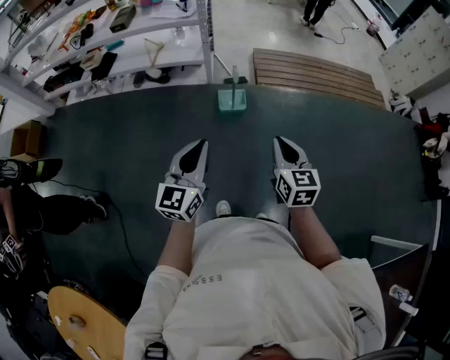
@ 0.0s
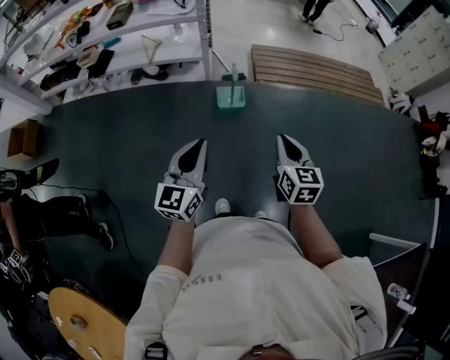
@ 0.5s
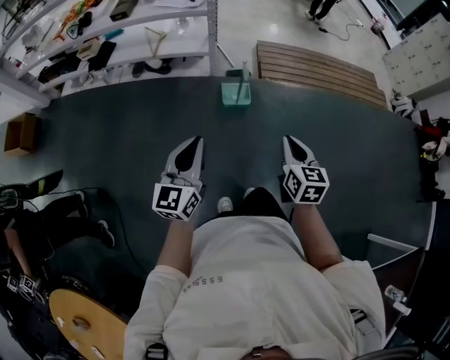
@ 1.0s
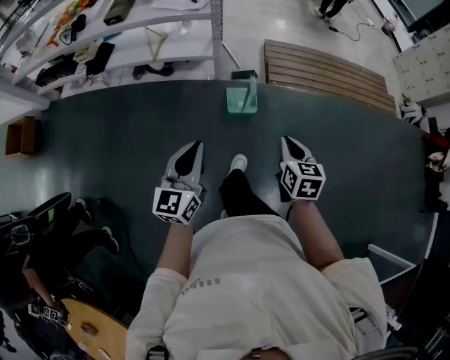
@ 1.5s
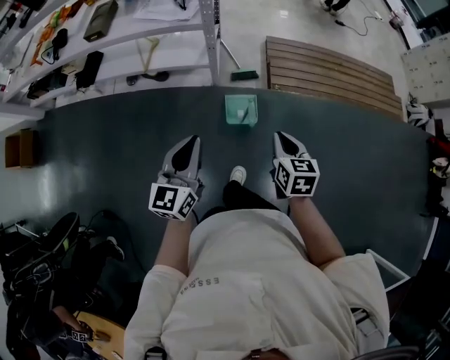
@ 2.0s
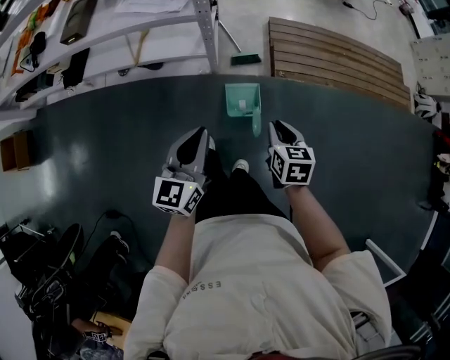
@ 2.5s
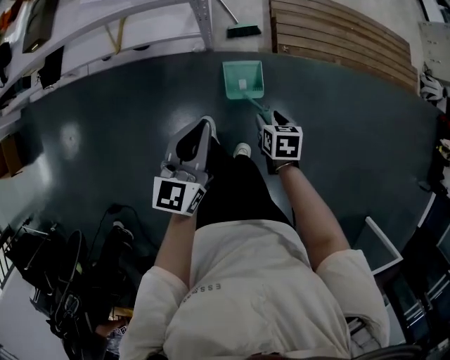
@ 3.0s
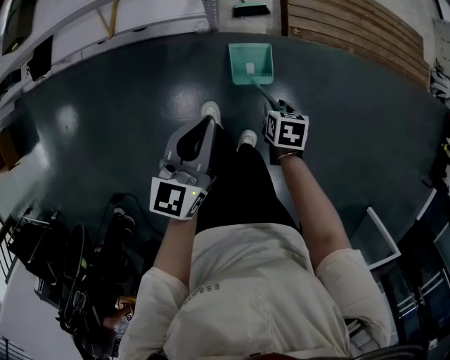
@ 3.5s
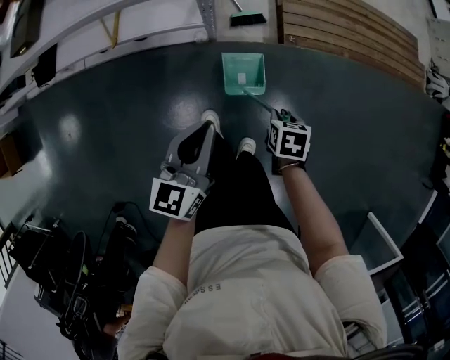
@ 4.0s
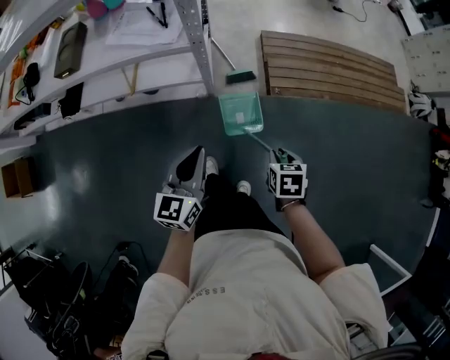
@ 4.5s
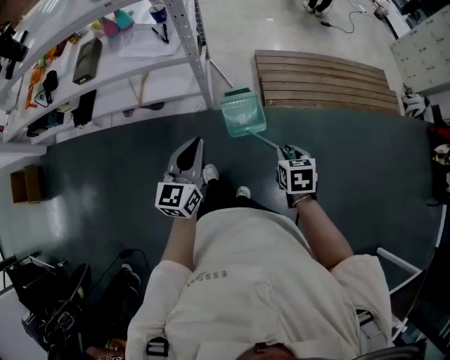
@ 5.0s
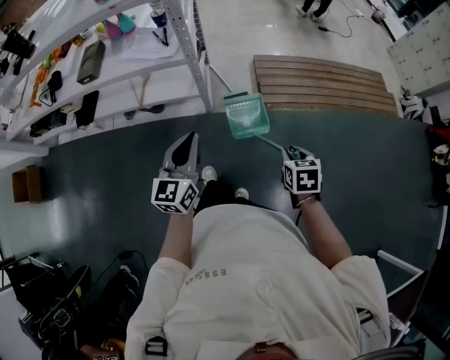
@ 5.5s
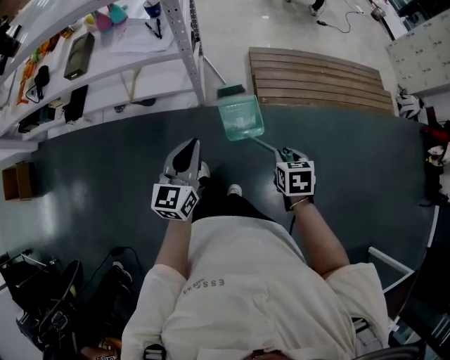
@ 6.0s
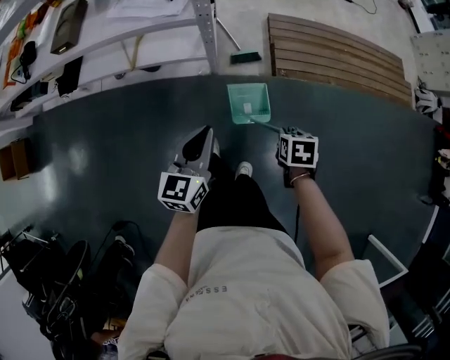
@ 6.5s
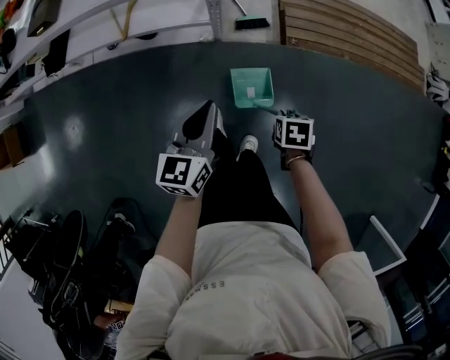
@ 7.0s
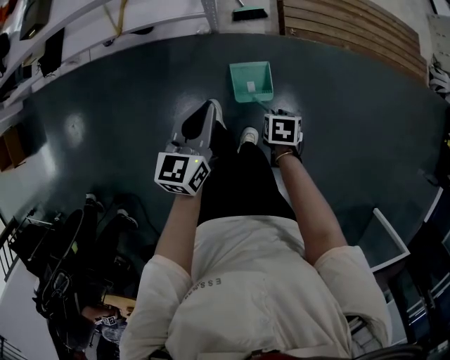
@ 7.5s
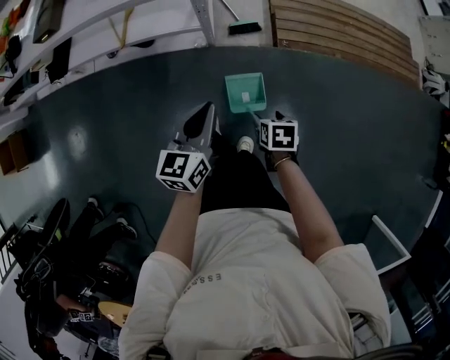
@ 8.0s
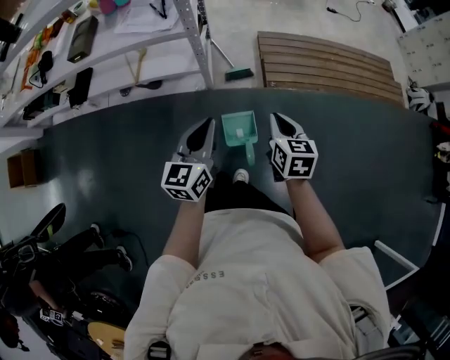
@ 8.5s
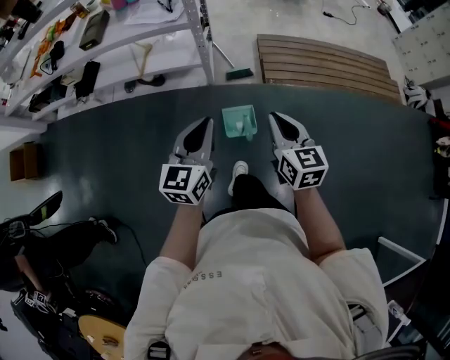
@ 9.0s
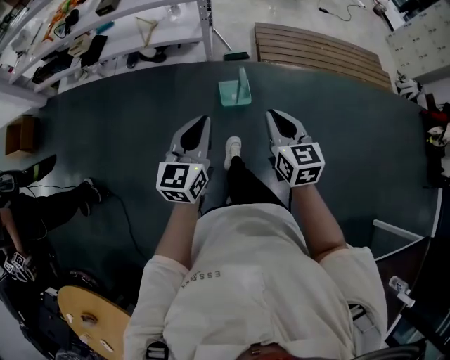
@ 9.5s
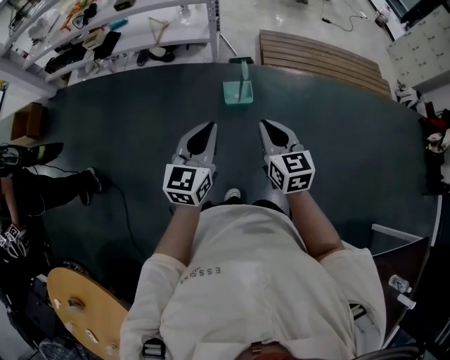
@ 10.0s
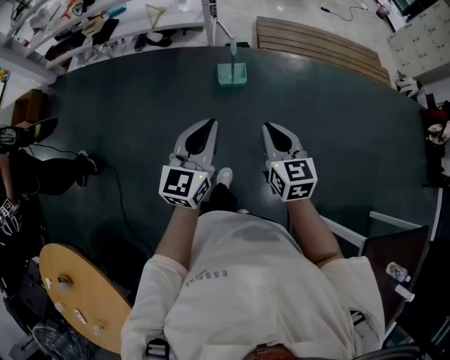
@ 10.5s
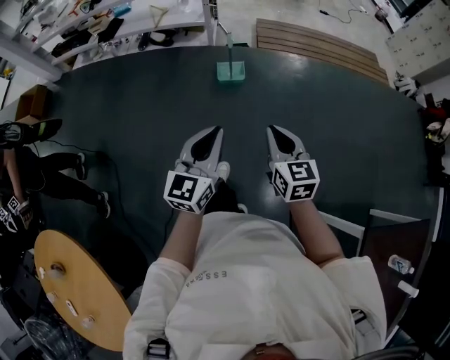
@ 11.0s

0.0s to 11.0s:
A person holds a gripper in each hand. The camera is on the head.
0.0s to 2.0s: Both grippers move forward, some 35 cm.
2.0s to 3.5s: The right gripper is displaced downward and forward by approximately 30 cm, points its fingers about 30 degrees further downward, and opens up. Meanwhile the left gripper is displaced forward and downward by some 25 cm.
3.5s to 5.5s: The left gripper moves upward and backward, some 20 cm. Meanwhile the right gripper heads upward and to the right, covering some 30 cm, and swivels some 20 degrees.
5.5s to 7.5s: The two grippers go about 25 cm downward. The right gripper swivels about 30 degrees. Meanwhile the left gripper swivels roughly 20 degrees.
7.5s to 9.0s: The left gripper travels upward by about 20 cm. The right gripper goes about 35 cm upward, tips its fingers upward by approximately 60 degrees, and opens, then closes once more.
9.0s to 11.0s: The two grippers travel together, backward, approximately 60 cm.

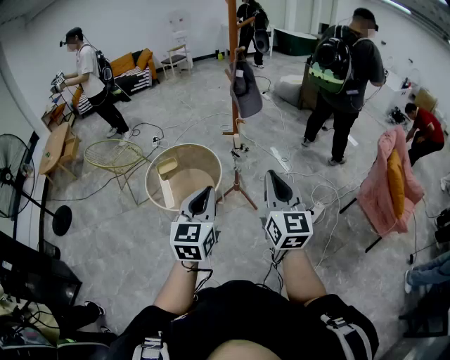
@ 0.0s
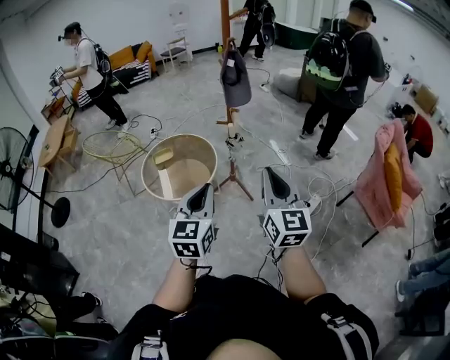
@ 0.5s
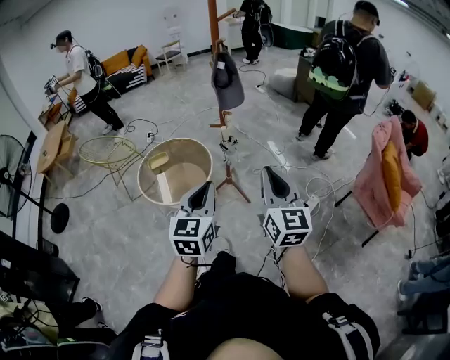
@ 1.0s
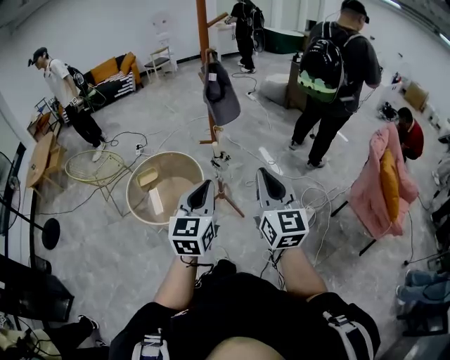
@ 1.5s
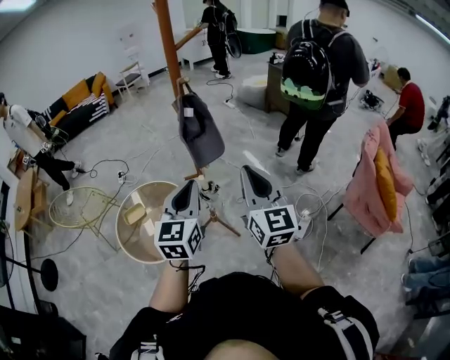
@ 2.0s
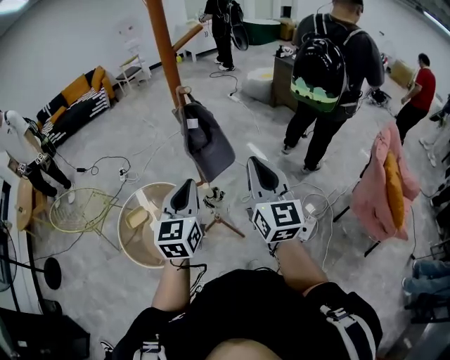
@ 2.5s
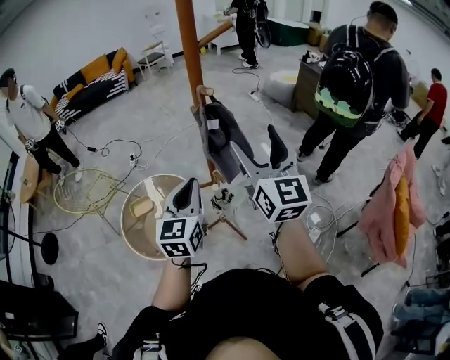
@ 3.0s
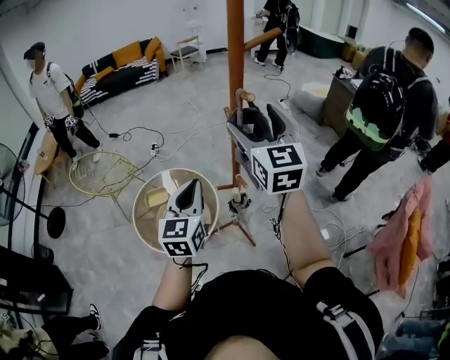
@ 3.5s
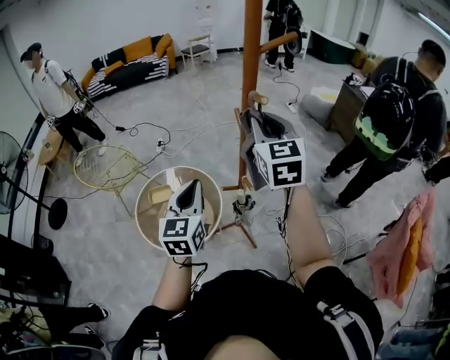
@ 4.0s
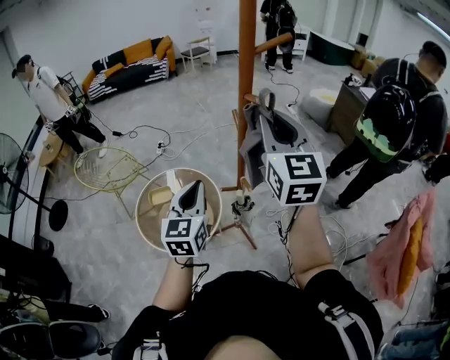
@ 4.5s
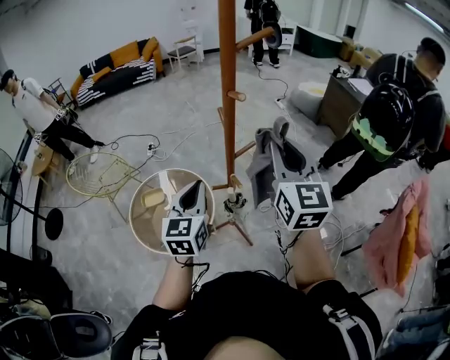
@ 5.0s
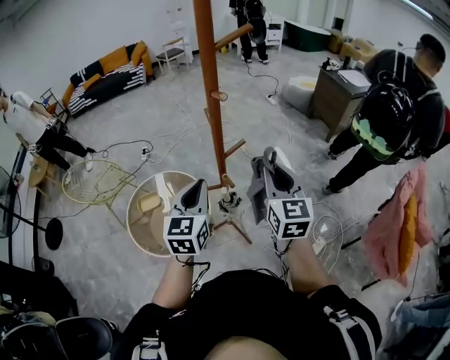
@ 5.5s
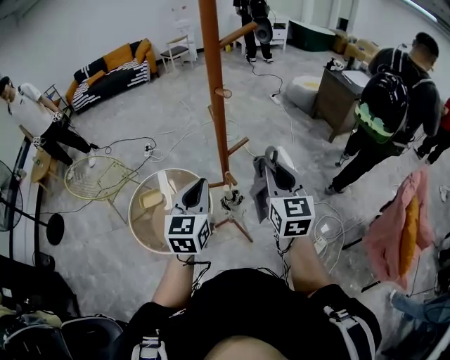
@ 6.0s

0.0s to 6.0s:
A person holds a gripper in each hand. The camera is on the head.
0.0s to 2.0s: The two grippers go some 30 cm forward.
2.0s to 4.0s: The left gripper travels forward and to the left by approximately 20 cm, and rotates approximately 20 degrees. The right gripper travels forward by roughly 30 cm, turns by approximately 20 degrees, and opens, then closes once more.
4.0s to 6.0s: The right gripper is displaced downward, to the right and backward by roughly 20 cm. The left gripper shifts approximately 10 cm to the right.

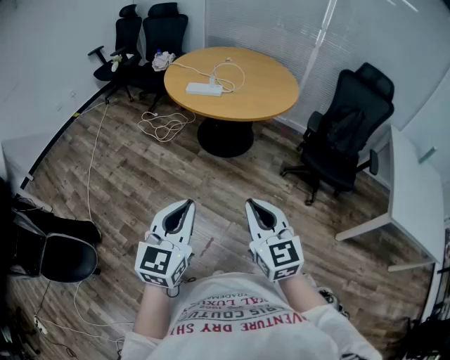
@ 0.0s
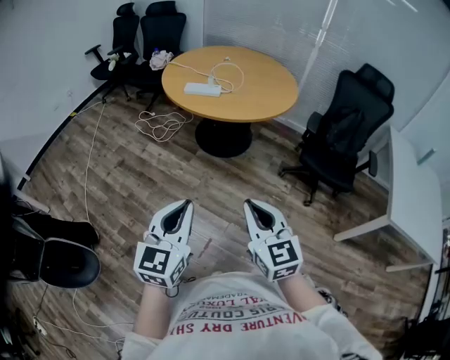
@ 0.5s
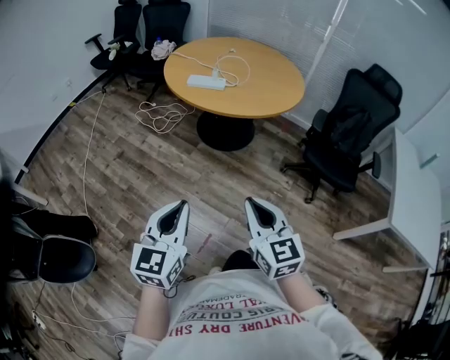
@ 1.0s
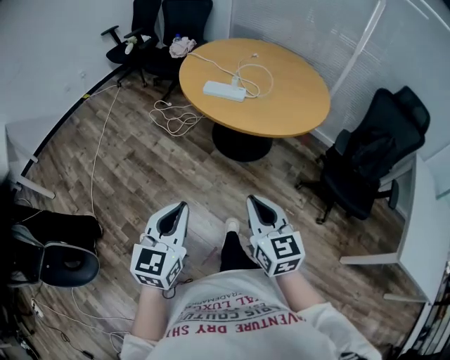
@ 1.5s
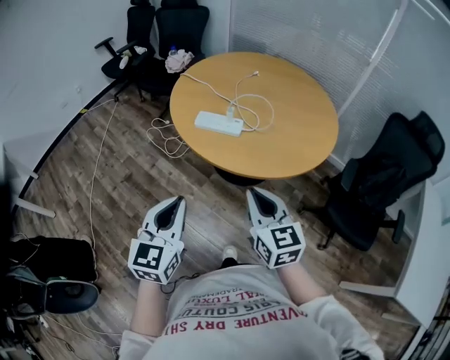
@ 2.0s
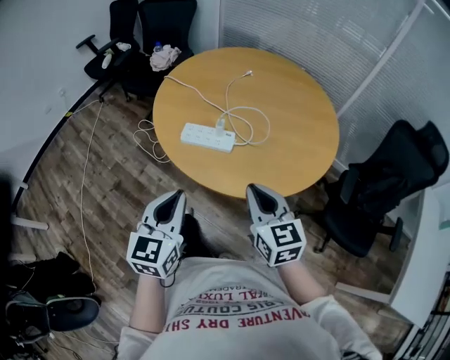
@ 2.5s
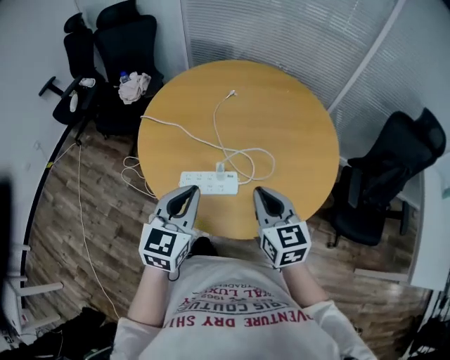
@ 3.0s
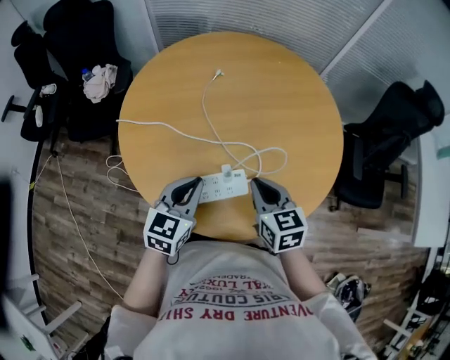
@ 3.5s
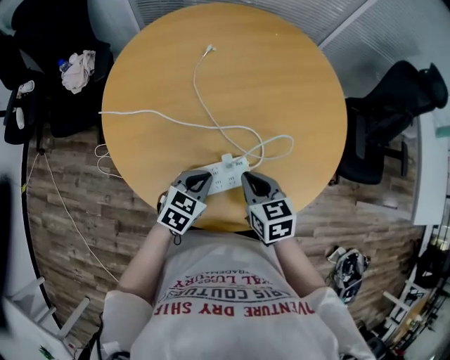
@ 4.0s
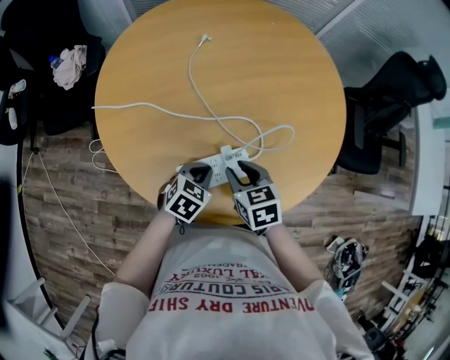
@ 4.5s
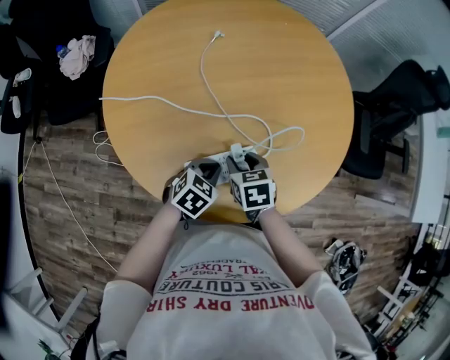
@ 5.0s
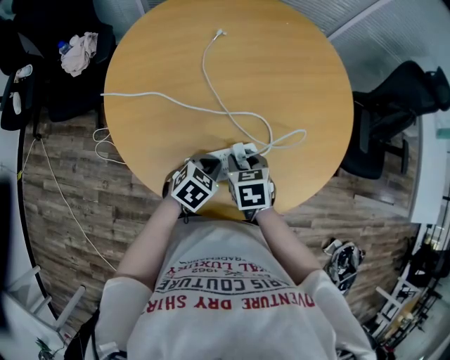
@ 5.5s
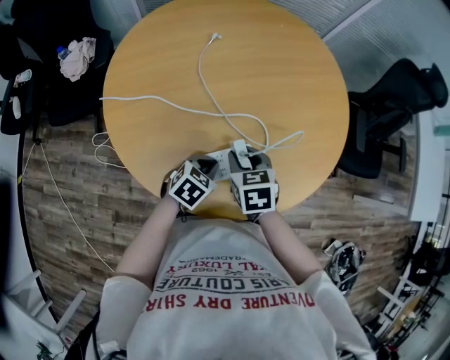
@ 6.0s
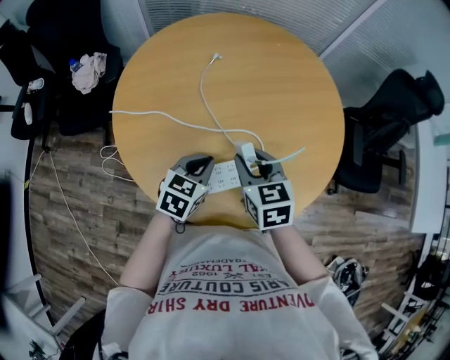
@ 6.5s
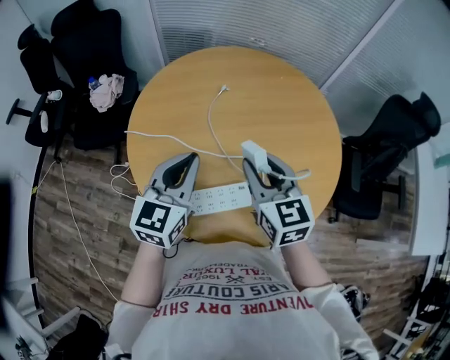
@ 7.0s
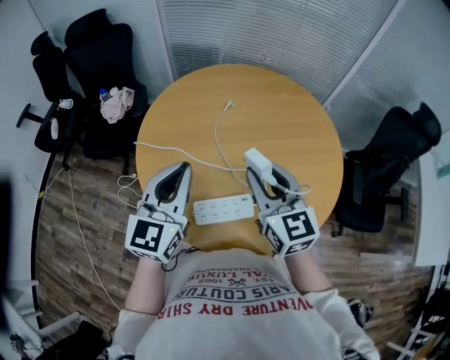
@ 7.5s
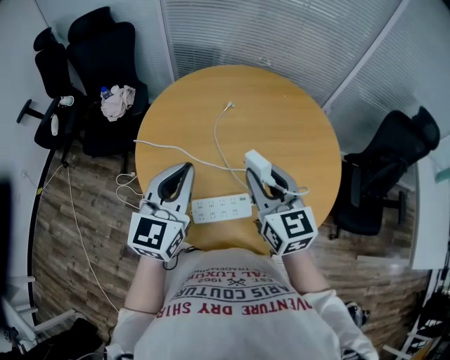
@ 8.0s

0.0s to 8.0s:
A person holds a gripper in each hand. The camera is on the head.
0.0s to 2.0s: Both grippers travel together forward, approximately 40 cm.
2.0s to 4.0s: The right gripper changes place by some 40 cm, and rotates approximately 40 degrees. The left gripper shifts by about 50 cm, and changes its angle by roughly 60 degrees.
4.0s to 6.0s: The right gripper opens its fingers.
6.0s to 8.0s: Both grippers travel together upward, roughly 30 cm. The left gripper tips its fingers upward by some 50 degrees. The right gripper points its fingers roughly 40 degrees further upward.

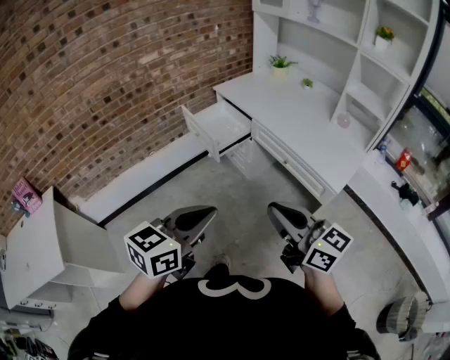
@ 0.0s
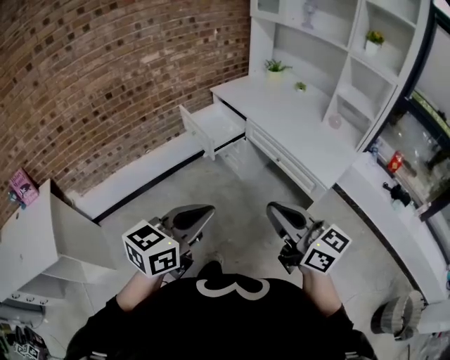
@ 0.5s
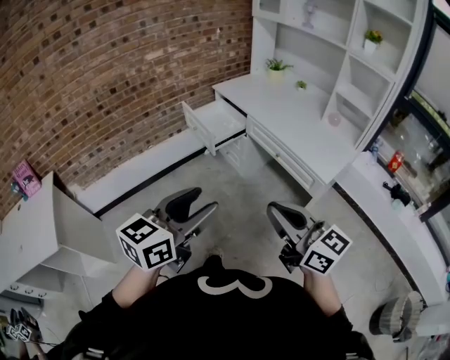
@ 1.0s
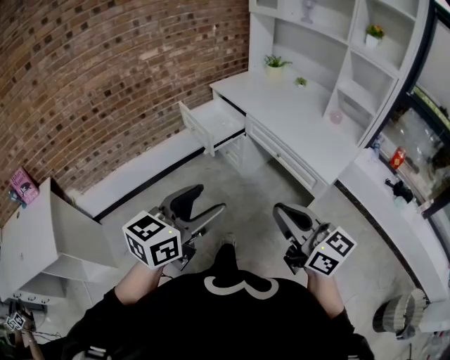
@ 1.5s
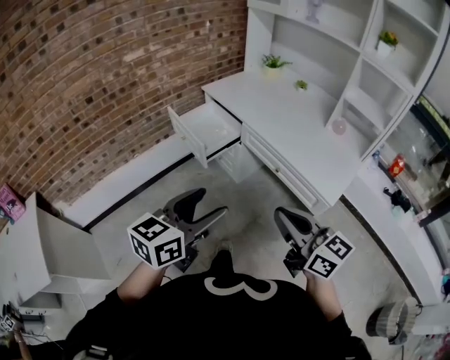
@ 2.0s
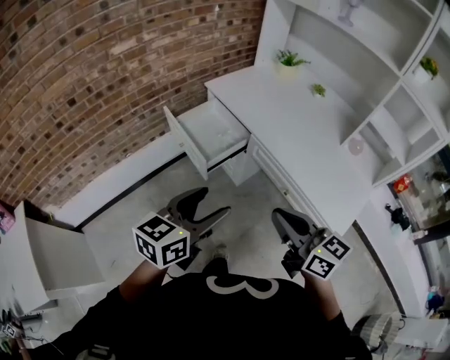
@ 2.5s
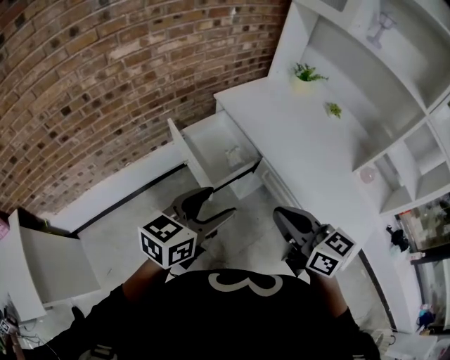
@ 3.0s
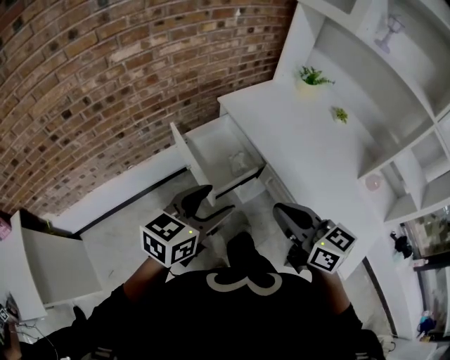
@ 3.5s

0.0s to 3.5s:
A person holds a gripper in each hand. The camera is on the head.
0.0s to 2.0s: The left gripper heads forward, covering some 10 cm, and opens up. Meanwhile the right gripper goes about 5 cm forward.
2.0s to 3.5s: The two grippers go approximately 35 cm forward.
